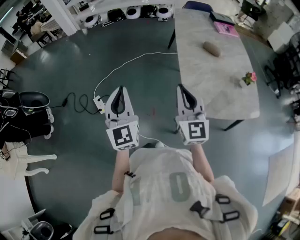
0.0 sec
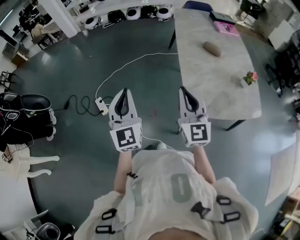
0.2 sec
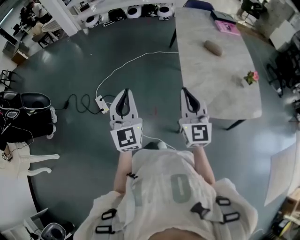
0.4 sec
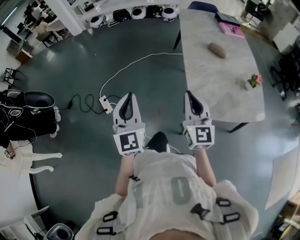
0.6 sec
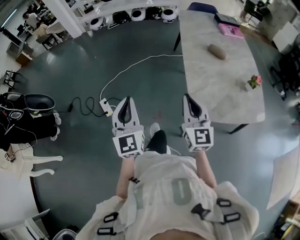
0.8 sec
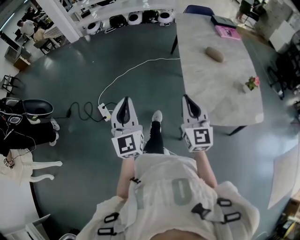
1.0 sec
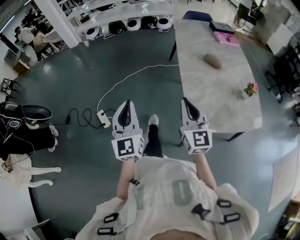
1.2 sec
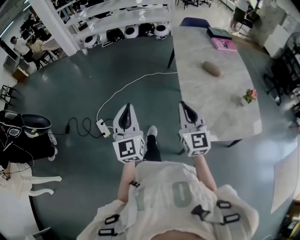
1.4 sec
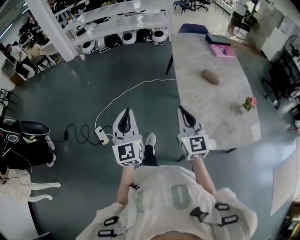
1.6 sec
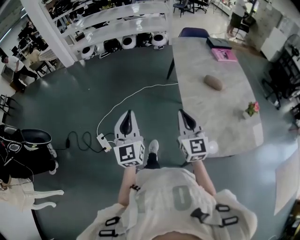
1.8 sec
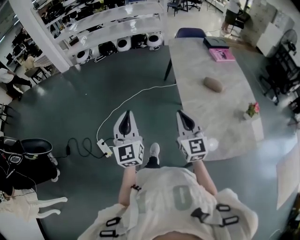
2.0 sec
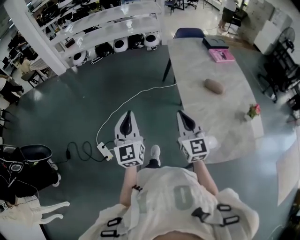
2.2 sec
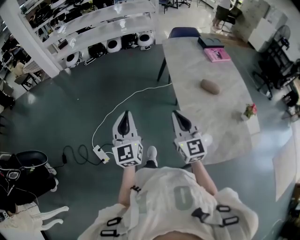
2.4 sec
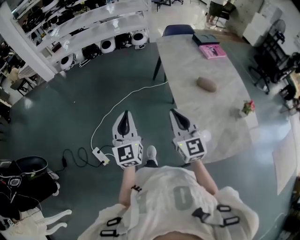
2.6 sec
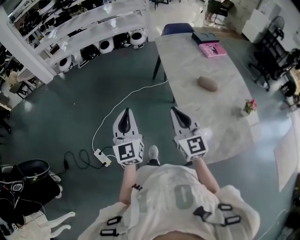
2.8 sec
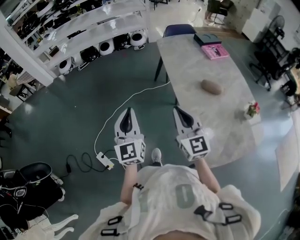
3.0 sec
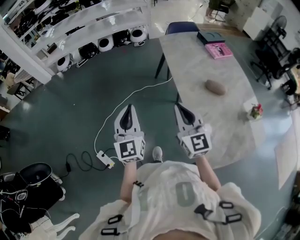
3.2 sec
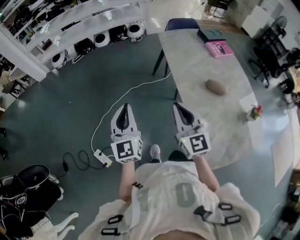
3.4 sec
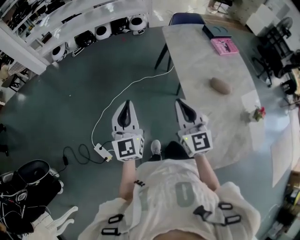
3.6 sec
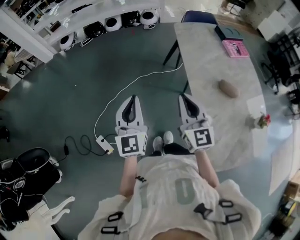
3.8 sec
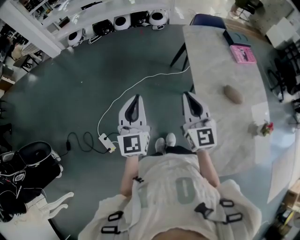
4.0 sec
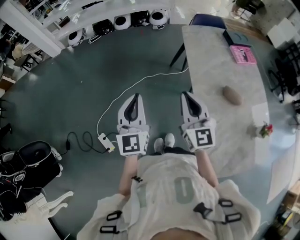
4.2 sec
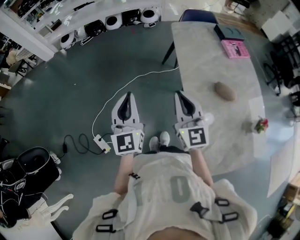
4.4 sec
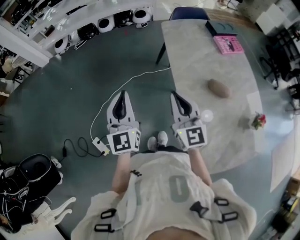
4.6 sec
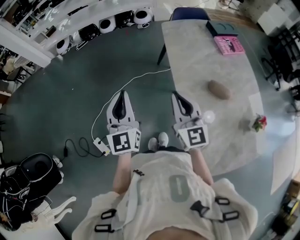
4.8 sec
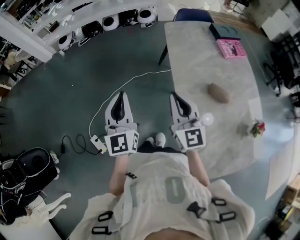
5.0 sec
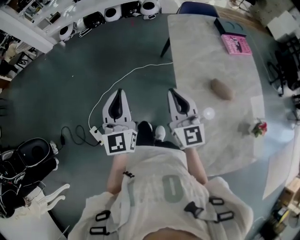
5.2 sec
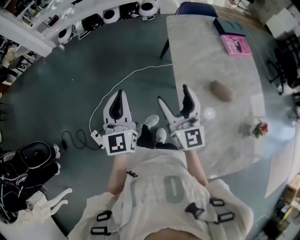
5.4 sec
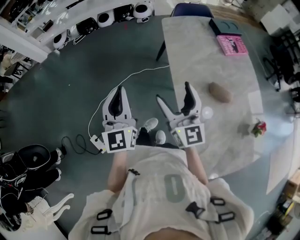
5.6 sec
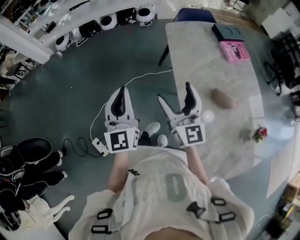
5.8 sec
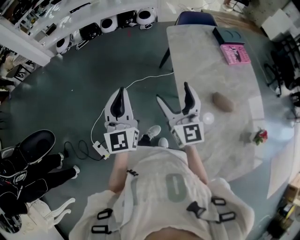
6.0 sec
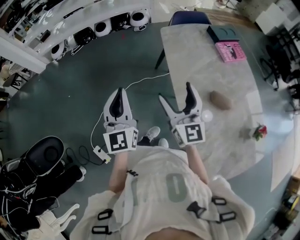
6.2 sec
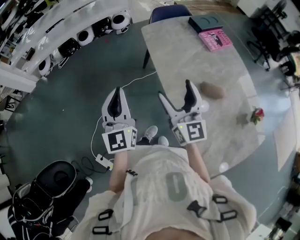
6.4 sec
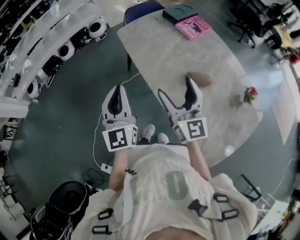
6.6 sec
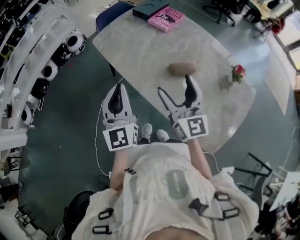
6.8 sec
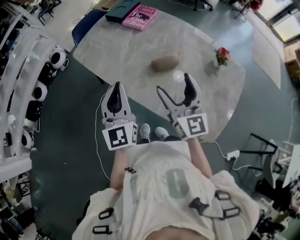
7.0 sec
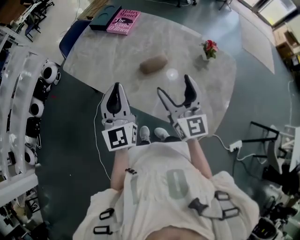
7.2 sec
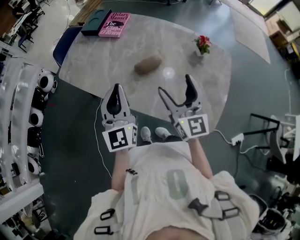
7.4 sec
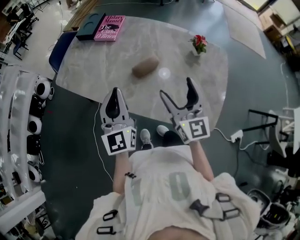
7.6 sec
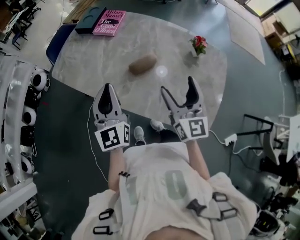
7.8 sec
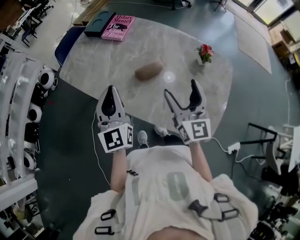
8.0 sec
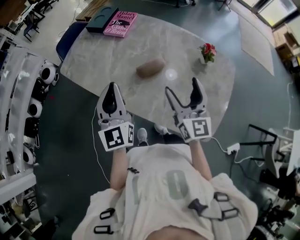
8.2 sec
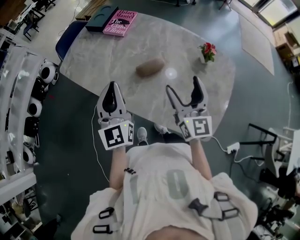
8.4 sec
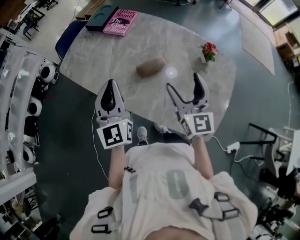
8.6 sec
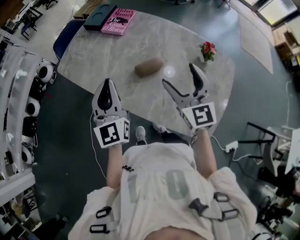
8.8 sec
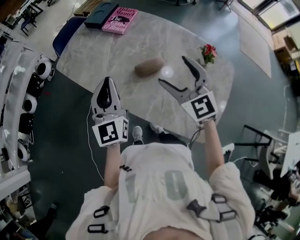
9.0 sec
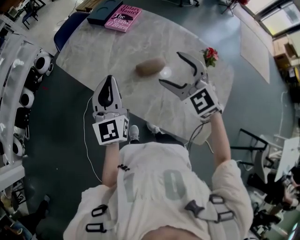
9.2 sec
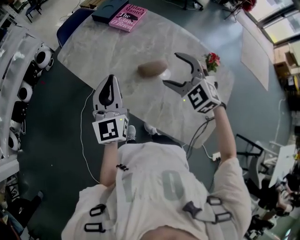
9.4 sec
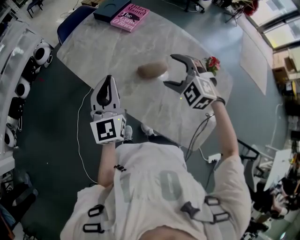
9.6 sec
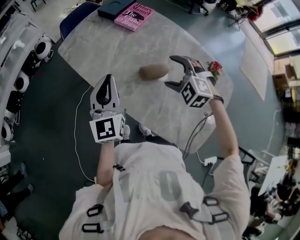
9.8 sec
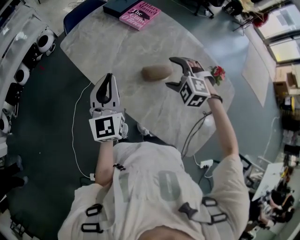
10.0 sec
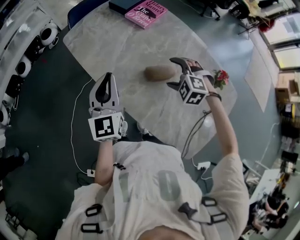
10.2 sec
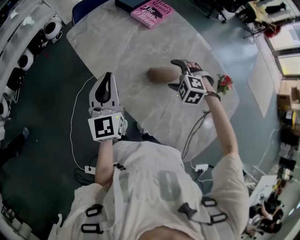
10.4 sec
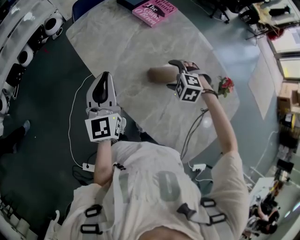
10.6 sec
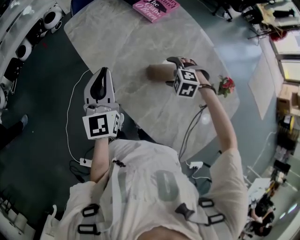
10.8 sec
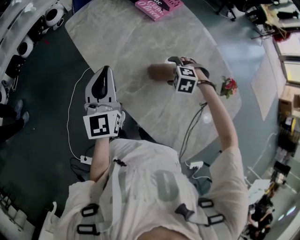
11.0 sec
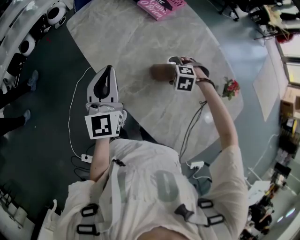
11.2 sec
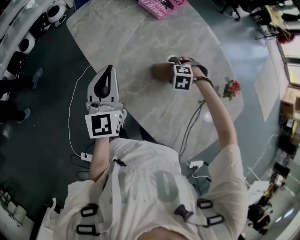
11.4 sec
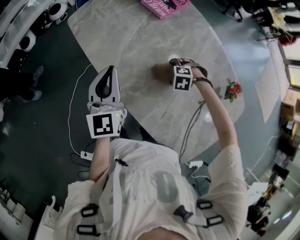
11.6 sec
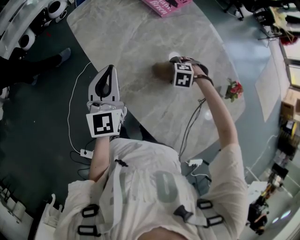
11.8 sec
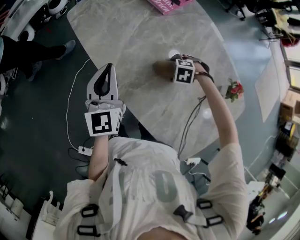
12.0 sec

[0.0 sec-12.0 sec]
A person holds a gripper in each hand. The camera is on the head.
0.0 sec to 1.6 sec: Both grippers move forward, roughly 15 cm.
1.6 sec to 3.0 sec: The grippers both shift forward by some 25 cm.
3.0 sec to 4.4 sec: Both grippers travel together forward, some 15 cm.
4.4 sec to 6.0 sec: Both grippers travel together forward, about 10 cm. The right gripper opens its fingers.
6.0 sec to 7.6 sec: The right gripper ends up approximately 30 cm from where it was, and turns by some 60 degrees, while the left gripper changes place by roughly 30 cm, and turns by some 60 degrees.
7.6 sec to 9.0 sec: The left gripper shifts by about 5 cm; the right gripper heads forward, covering approximately 10 cm, and swivels roughly 30 degrees.
9.0 sec to 10.4 sec: The right gripper heads downward and forward, covering roughly 25 cm, and angles its fingers downward, by roughly 50 degrees. Meanwhile the left gripper travels downward, to the left and forward by approximately 10 cm.
10.4 sec to 12.0 sec: The left gripper ends up roughly 5 cm from where it was, while the right gripper goes some 15 cm downward, and swivels roughly 30 degrees.

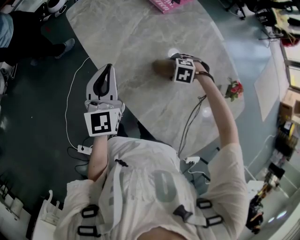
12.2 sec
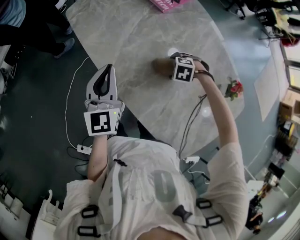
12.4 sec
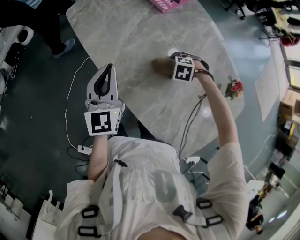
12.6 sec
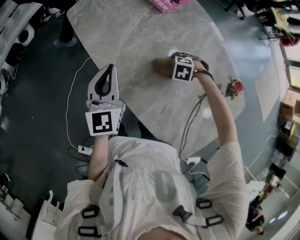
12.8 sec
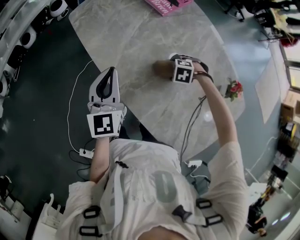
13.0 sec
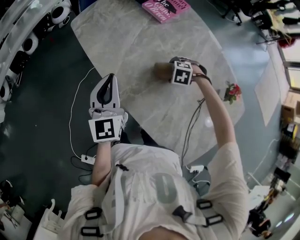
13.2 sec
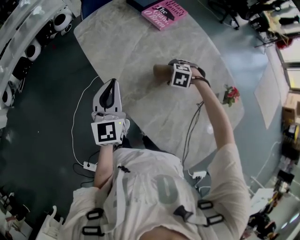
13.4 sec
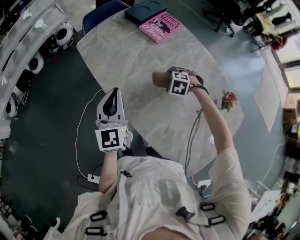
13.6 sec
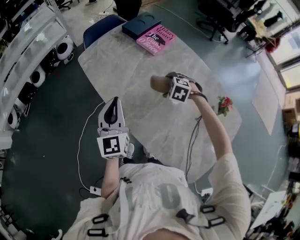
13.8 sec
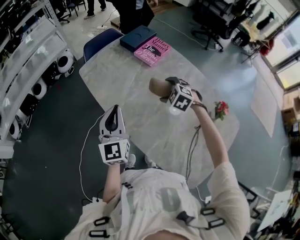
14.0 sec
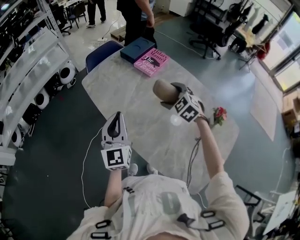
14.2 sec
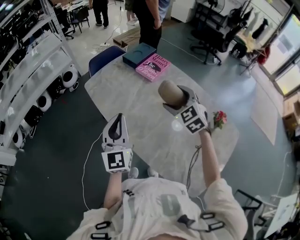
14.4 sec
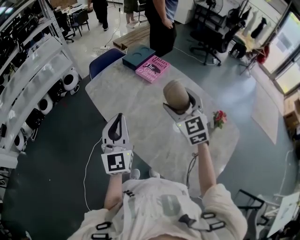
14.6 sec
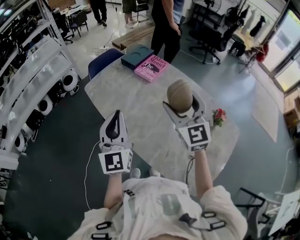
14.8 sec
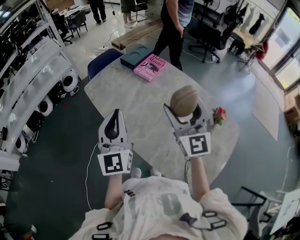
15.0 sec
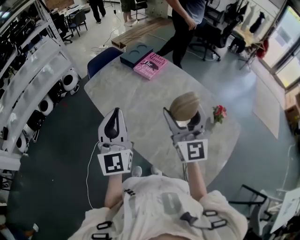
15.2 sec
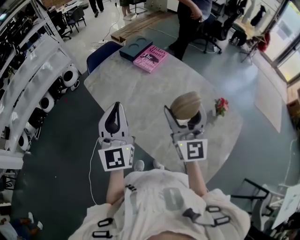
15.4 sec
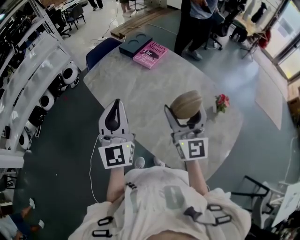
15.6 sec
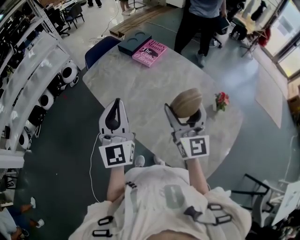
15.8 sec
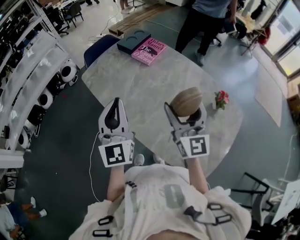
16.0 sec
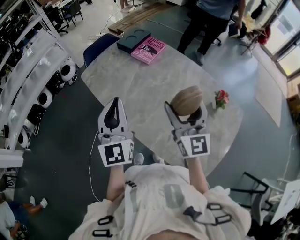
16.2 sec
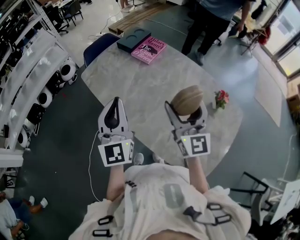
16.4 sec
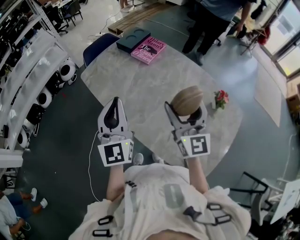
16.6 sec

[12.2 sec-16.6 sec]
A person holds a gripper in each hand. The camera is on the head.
12.2 sec to 13.6 sec: The right gripper is displaced upward by about 5 cm.
13.6 sec to 15.2 sec: The right gripper moves upward, approximately 35 cm, and angles its fingers upward, by some 90 degrees; the left gripper moves upward, roughly 15 cm.
15.2 sec to 16.6 sec: The grippers move only a little.

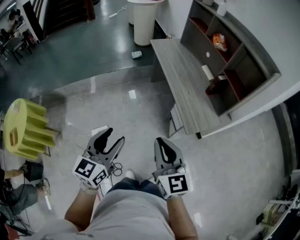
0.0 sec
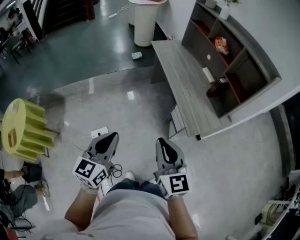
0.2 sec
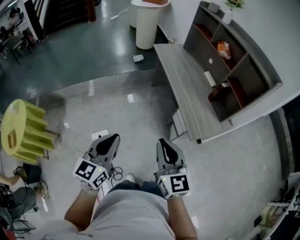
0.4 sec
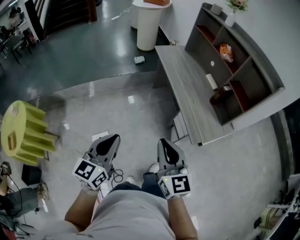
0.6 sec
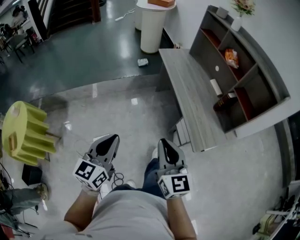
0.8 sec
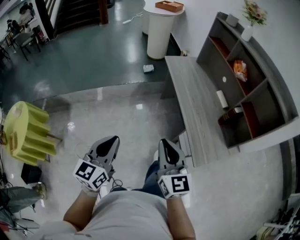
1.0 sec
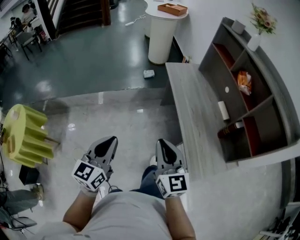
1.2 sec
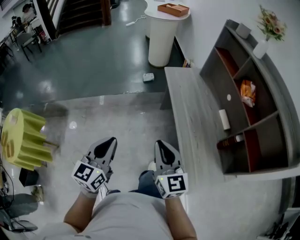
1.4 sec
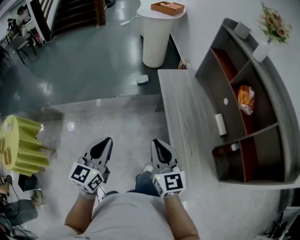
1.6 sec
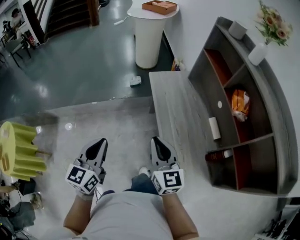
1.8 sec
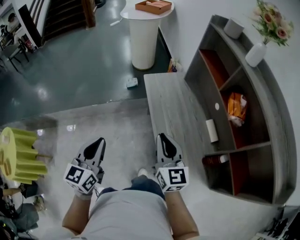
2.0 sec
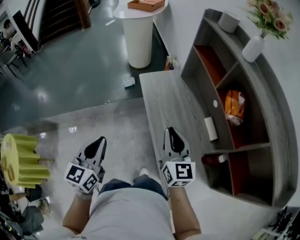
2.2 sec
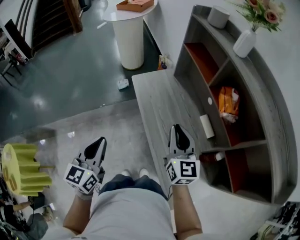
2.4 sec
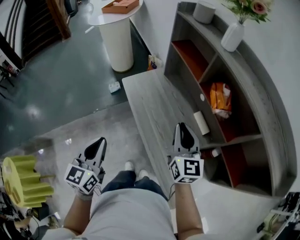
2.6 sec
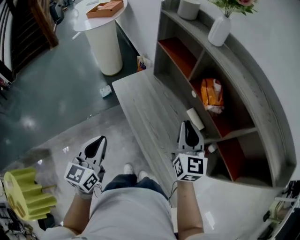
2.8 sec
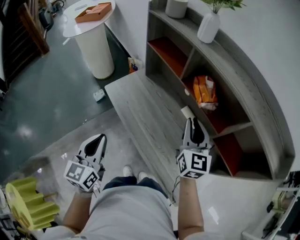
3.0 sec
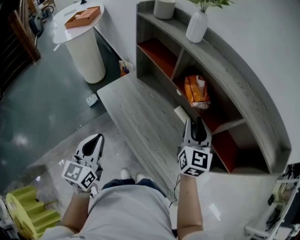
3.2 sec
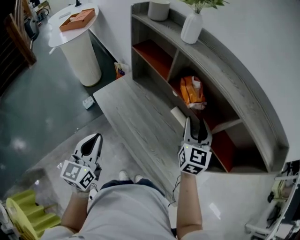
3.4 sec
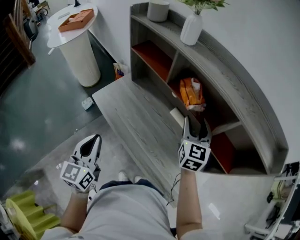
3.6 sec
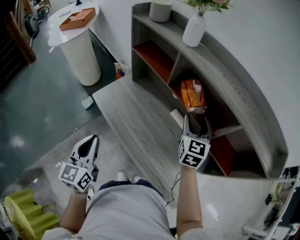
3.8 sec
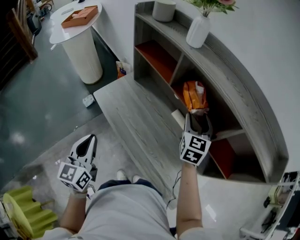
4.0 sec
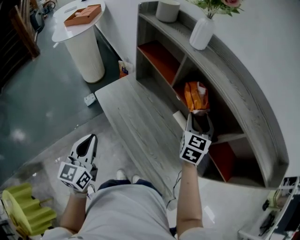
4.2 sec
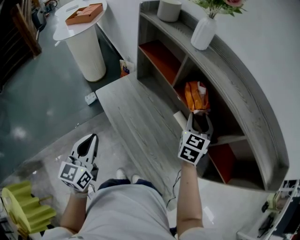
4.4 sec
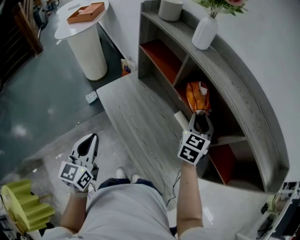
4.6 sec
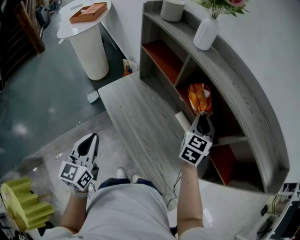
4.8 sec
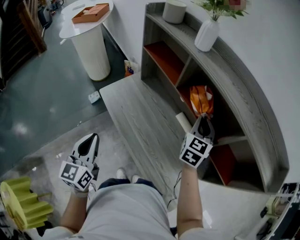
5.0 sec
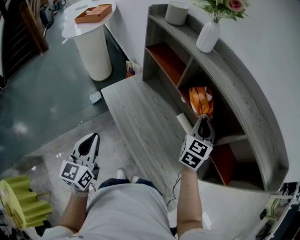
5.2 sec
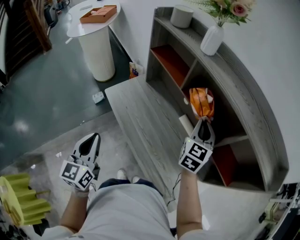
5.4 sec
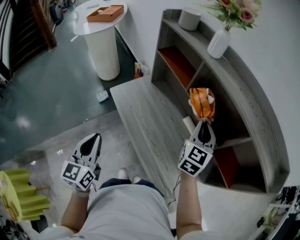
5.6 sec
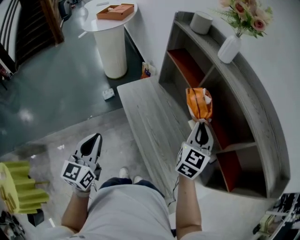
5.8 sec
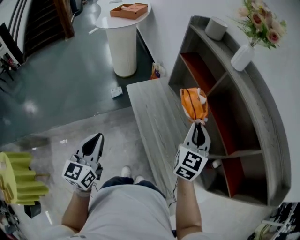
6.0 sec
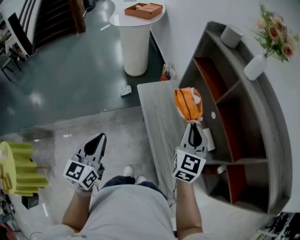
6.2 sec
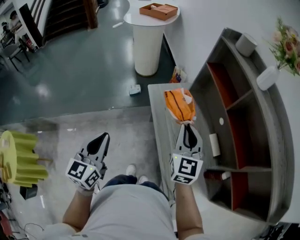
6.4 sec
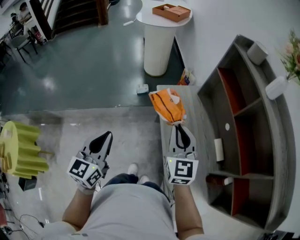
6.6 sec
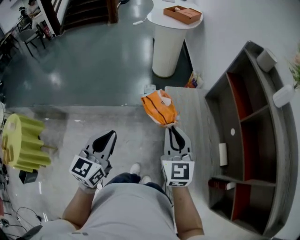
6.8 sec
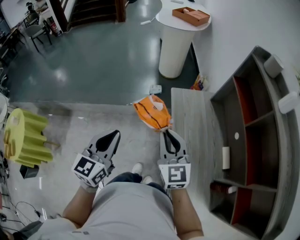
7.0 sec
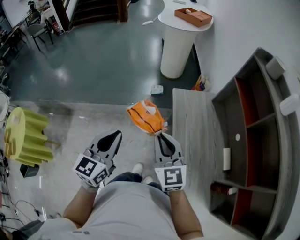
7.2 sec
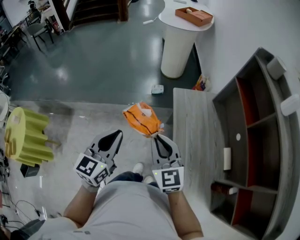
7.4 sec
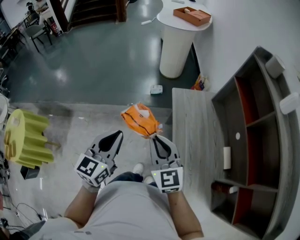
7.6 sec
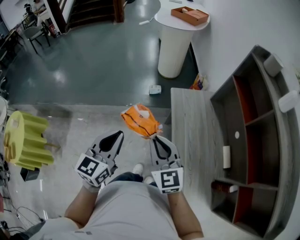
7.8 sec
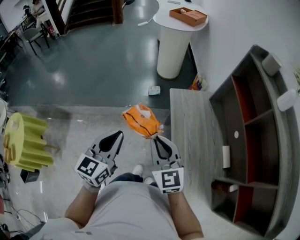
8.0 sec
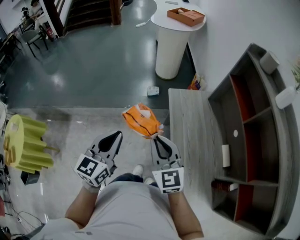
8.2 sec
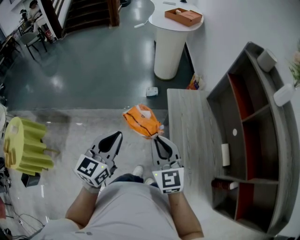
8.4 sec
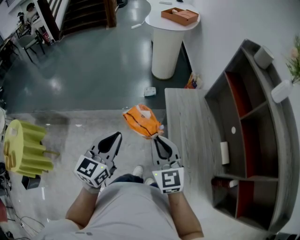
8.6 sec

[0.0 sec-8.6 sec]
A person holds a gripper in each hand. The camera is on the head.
0.0 sec to 1.4 sec: The grippers both shift forward by some 35 cm. The left gripper closes.
1.4 sec to 2.8 sec: The right gripper shifts by some 40 cm, and changes its angle by about 40 degrees; the left gripper ends up approximately 35 cm from where it was.
2.8 sec to 4.4 sec: The right gripper goes some 15 cm forward and to the right, swivels roughly 30 degrees, and opens; the left gripper is displaced forward by some 10 cm.
4.4 sec to 5.8 sec: The left gripper travels backward by roughly 10 cm, while the right gripper heads to the left and backward, covering approximately 10 cm, and closes.
5.8 sec to 7.2 sec: The left gripper shifts by about 15 cm; the right gripper ends up approximately 40 cm from where it was, and swivels about 60 degrees.
7.2 sec to 8.6 sec: There are only small adjustments of the grippers.
